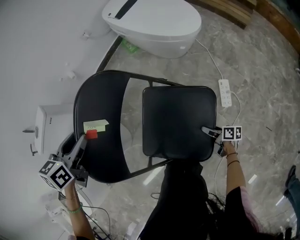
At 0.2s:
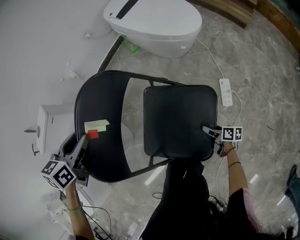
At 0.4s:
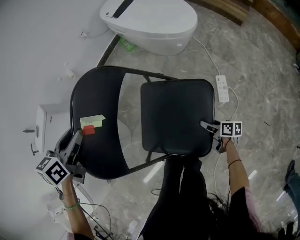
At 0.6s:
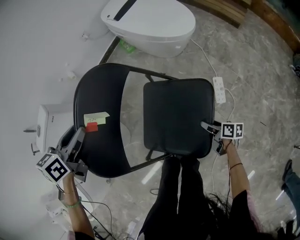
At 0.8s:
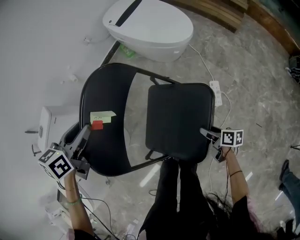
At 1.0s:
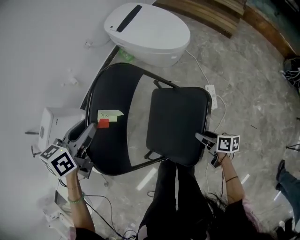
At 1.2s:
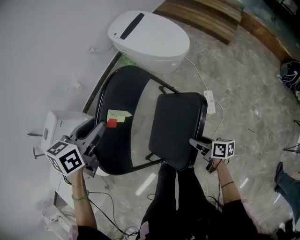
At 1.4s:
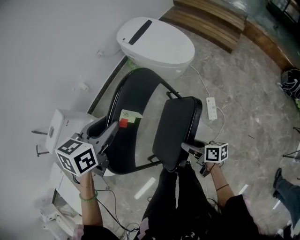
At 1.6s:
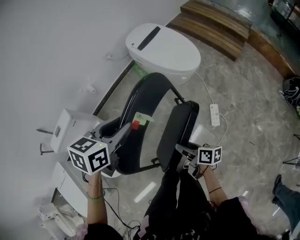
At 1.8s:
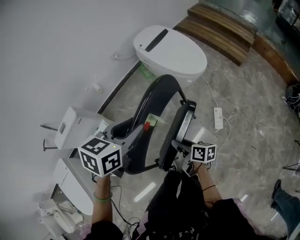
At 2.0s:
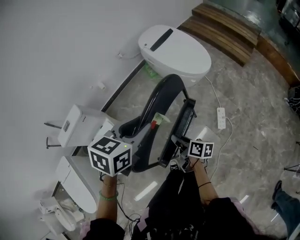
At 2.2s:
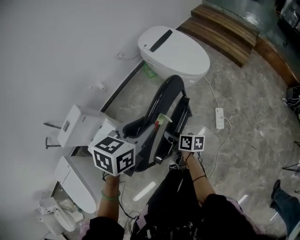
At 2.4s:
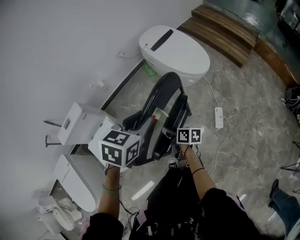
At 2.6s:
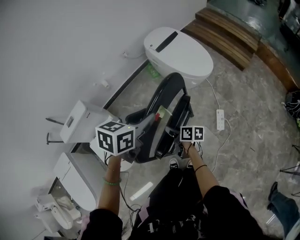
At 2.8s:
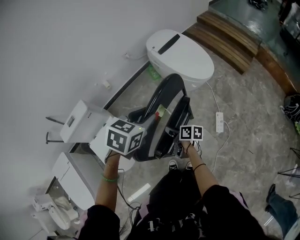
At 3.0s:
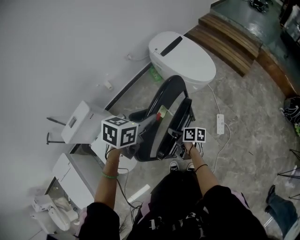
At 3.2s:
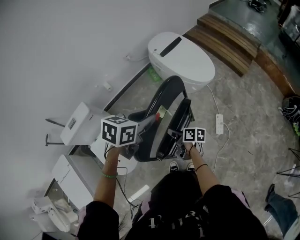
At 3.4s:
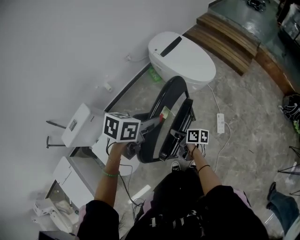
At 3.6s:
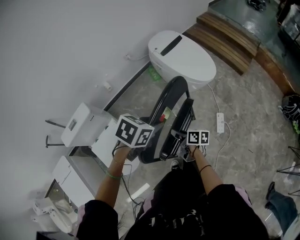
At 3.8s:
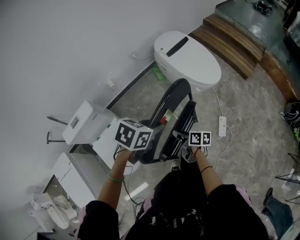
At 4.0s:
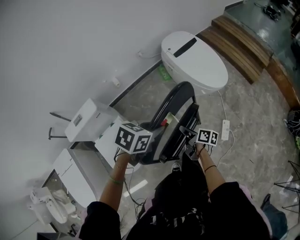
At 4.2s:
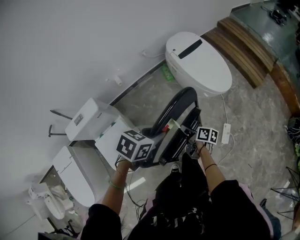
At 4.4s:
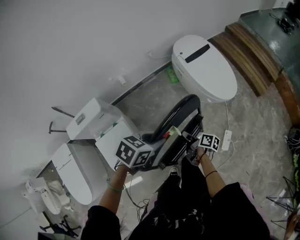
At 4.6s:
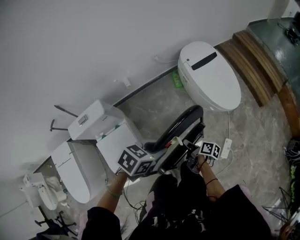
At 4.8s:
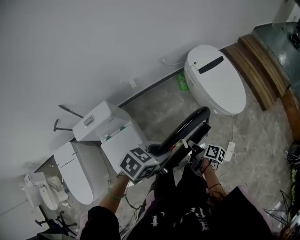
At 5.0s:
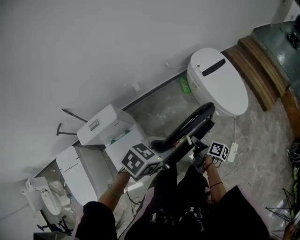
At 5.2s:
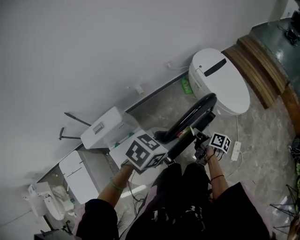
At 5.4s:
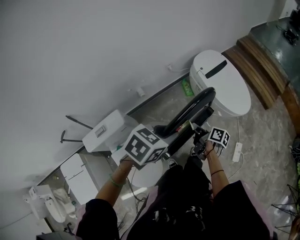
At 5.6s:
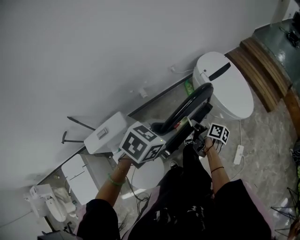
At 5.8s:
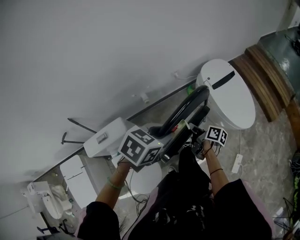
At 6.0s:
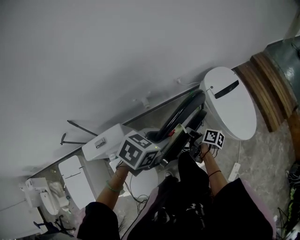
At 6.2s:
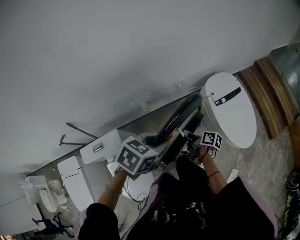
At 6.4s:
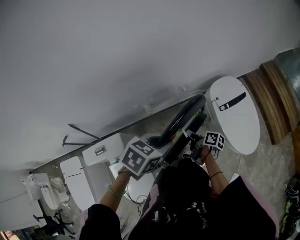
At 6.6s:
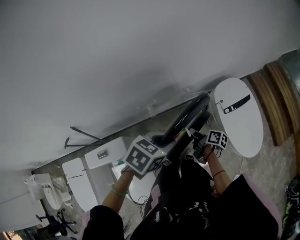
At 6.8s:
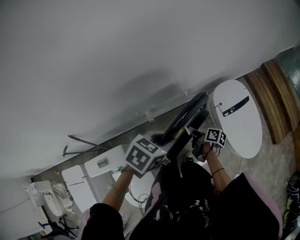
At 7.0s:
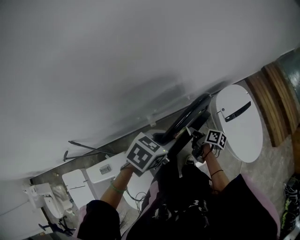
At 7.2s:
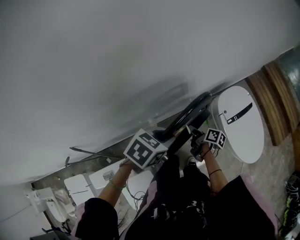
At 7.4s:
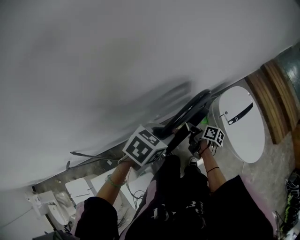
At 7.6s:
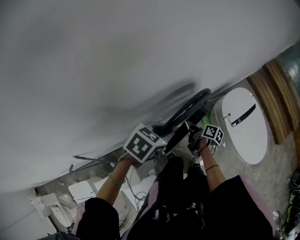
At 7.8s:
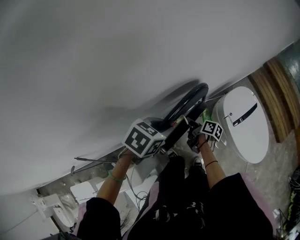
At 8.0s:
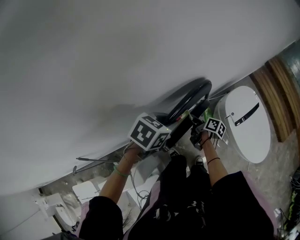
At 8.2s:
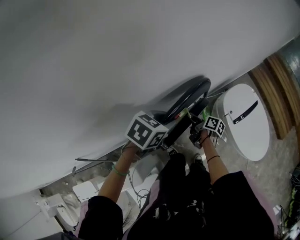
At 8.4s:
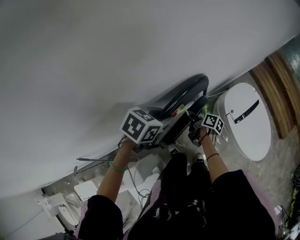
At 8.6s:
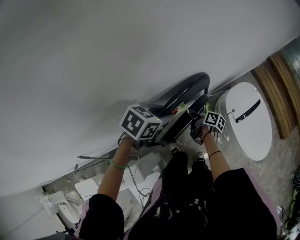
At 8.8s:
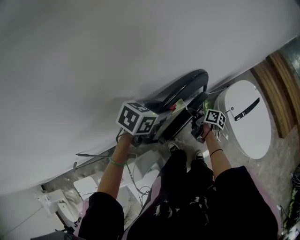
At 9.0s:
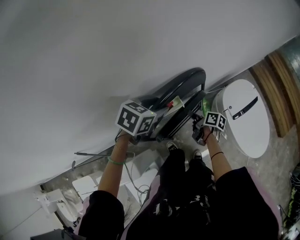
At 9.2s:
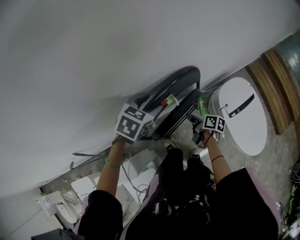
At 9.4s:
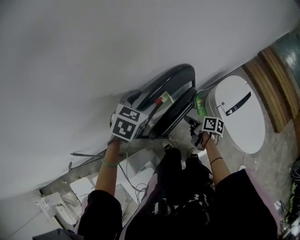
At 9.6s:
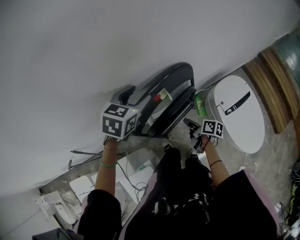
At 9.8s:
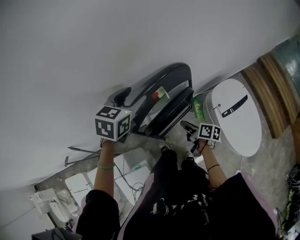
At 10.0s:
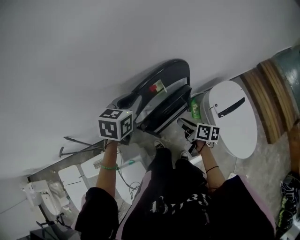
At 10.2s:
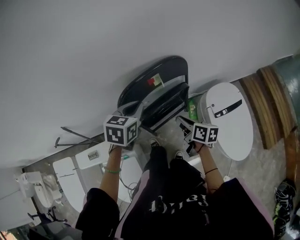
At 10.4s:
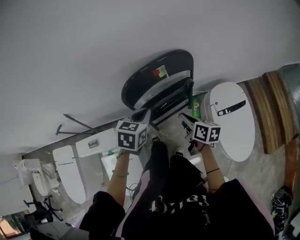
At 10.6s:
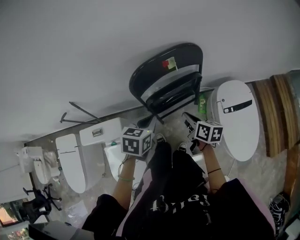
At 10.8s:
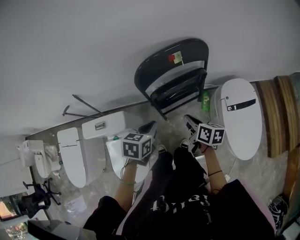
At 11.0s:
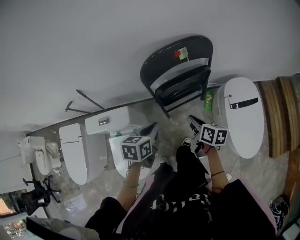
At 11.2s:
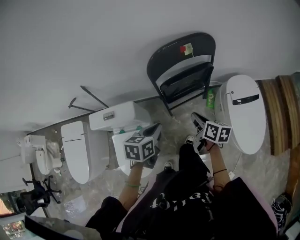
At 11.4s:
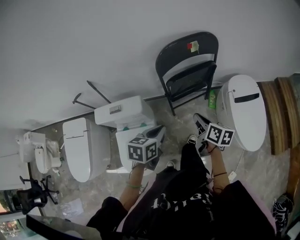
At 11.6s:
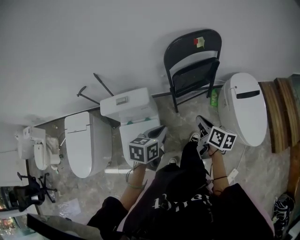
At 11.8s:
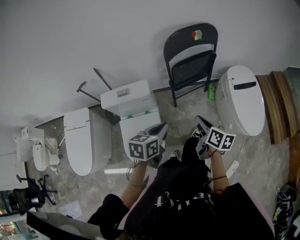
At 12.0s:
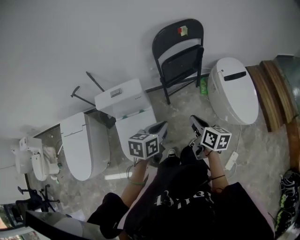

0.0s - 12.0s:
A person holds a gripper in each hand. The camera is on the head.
0.0s - 1.6s: The right gripper moves upward, approximately 35 cm, and closes up, while the left gripper goes roughly 20 cm upward and to the right.
1.6s - 3.0s: The right gripper heads to the left and forward, covering roughly 15 cm.
3.0s - 4.4s: The right gripper goes some 10 cm forward. The left gripper heads to the left, covering some 5 cm.
4.4s - 6.0s: The grippers both shift forward and to the left by roughly 30 cm.
6.0s - 7.6s: The grippers both shift forward and to the left by roughly 30 cm.
7.6s - 9.0s: The left gripper is displaced forward by approximately 10 cm, and opens its fingers.
9.0s - 10.4s: The right gripper is displaced backward and upward by about 20 cm, and swivels about 40 degrees. The left gripper moves backward, about 20 cm, rotates some 30 degrees, and closes up.
10.4s - 12.0s: The two grippers travel together, backward, some 40 cm. The left gripper turns by some 20 degrees.

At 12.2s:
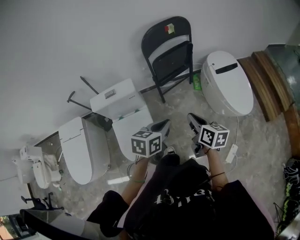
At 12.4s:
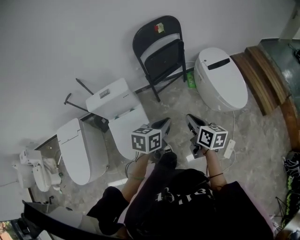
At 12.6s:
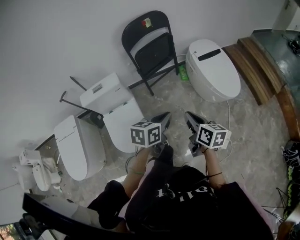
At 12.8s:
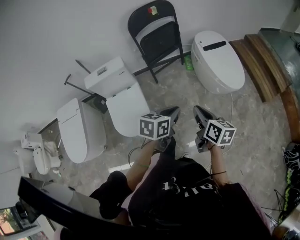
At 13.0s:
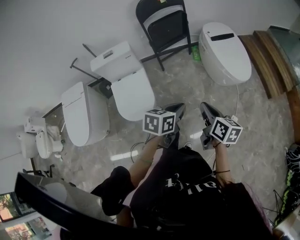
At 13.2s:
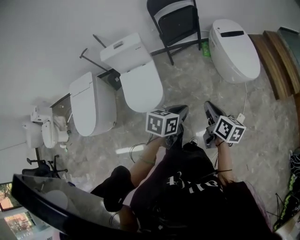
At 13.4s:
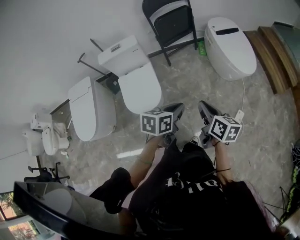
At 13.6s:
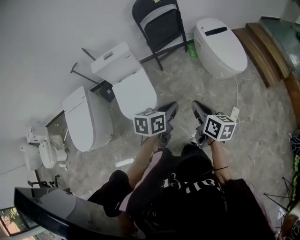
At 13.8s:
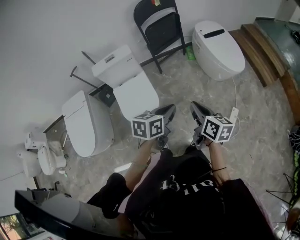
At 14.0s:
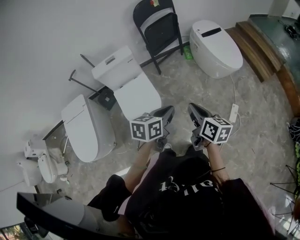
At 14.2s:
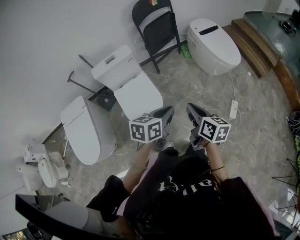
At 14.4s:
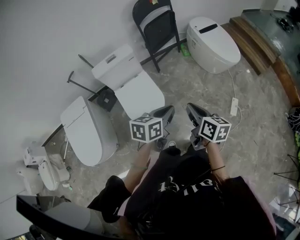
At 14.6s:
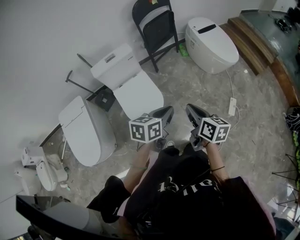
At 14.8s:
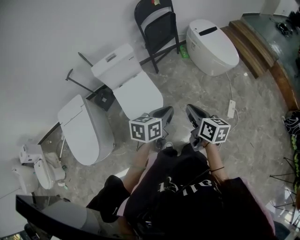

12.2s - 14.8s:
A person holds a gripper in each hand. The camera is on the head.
12.2s - 13.4s: The two grippers go approximately 30 cm backward and to the right.
13.4s - 14.8s: Both grippers move to the left and backward, some 20 cm.

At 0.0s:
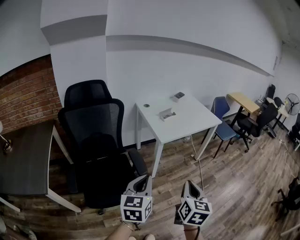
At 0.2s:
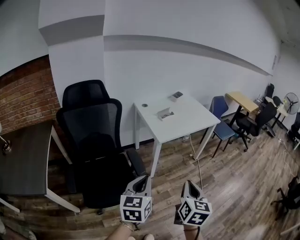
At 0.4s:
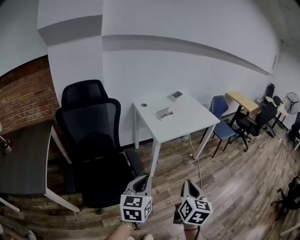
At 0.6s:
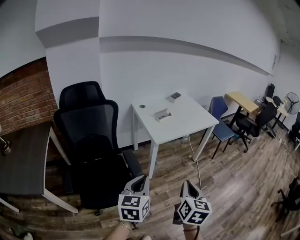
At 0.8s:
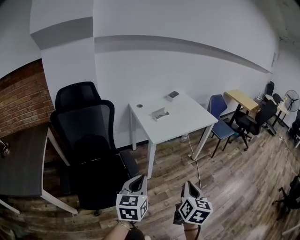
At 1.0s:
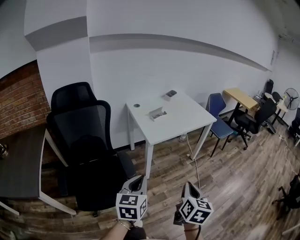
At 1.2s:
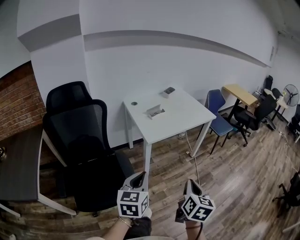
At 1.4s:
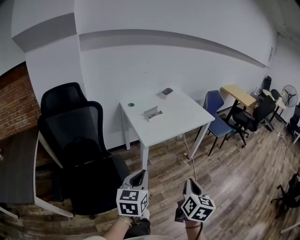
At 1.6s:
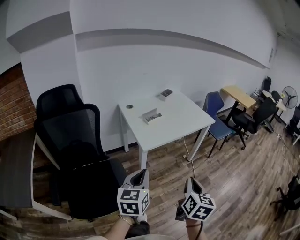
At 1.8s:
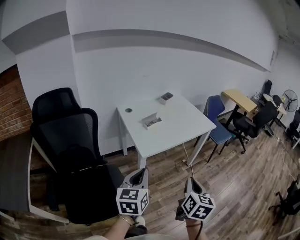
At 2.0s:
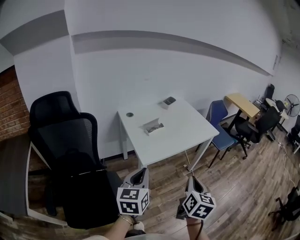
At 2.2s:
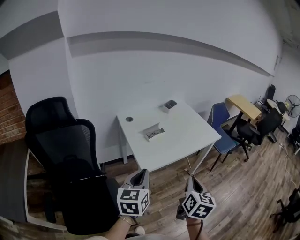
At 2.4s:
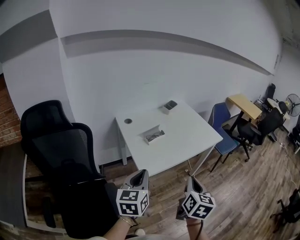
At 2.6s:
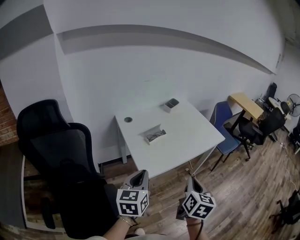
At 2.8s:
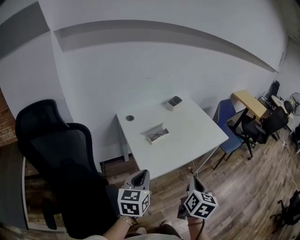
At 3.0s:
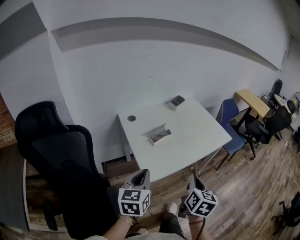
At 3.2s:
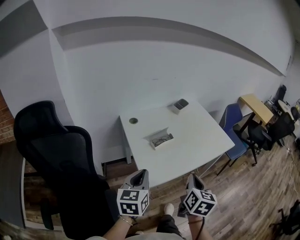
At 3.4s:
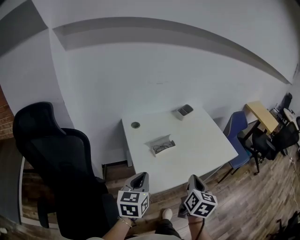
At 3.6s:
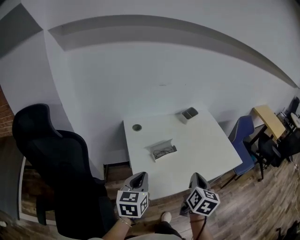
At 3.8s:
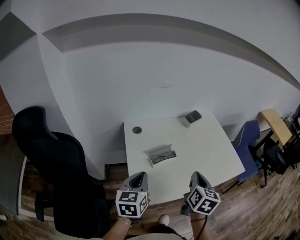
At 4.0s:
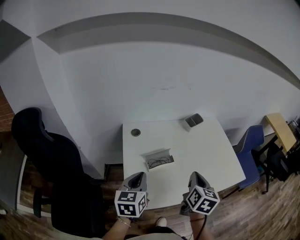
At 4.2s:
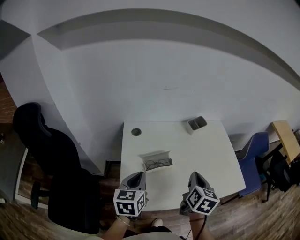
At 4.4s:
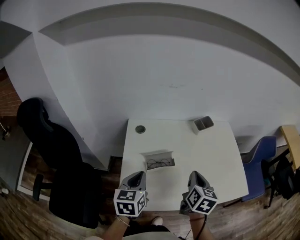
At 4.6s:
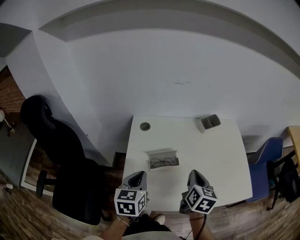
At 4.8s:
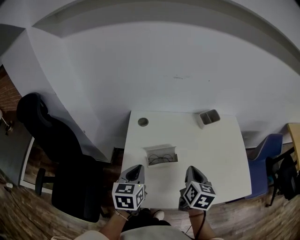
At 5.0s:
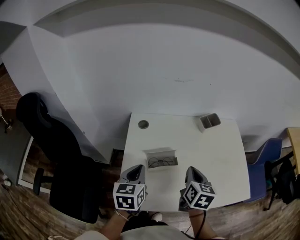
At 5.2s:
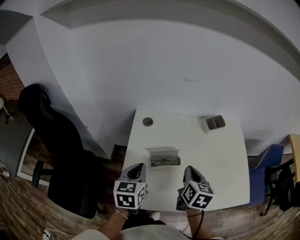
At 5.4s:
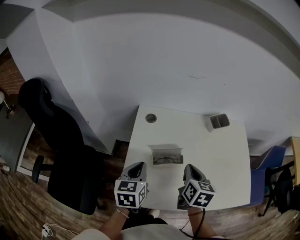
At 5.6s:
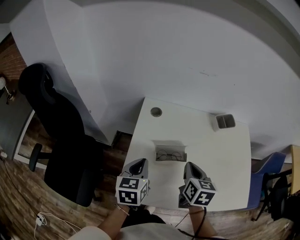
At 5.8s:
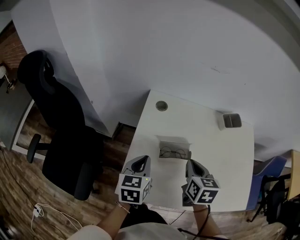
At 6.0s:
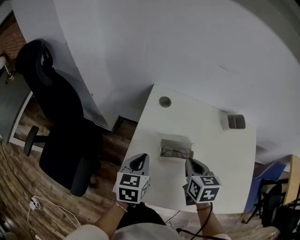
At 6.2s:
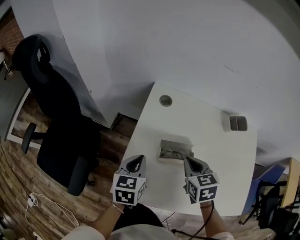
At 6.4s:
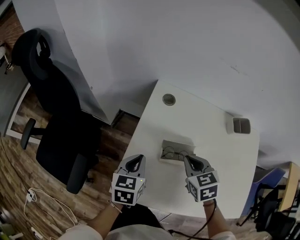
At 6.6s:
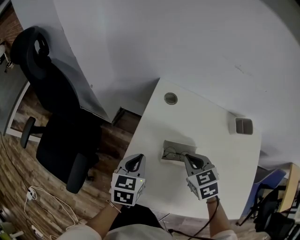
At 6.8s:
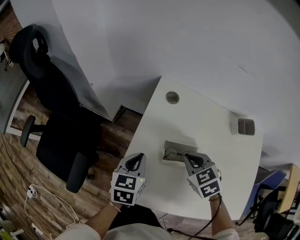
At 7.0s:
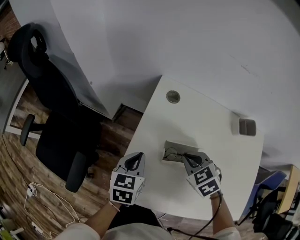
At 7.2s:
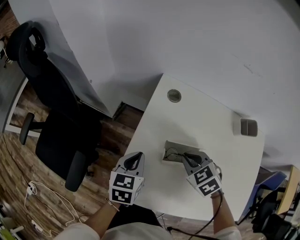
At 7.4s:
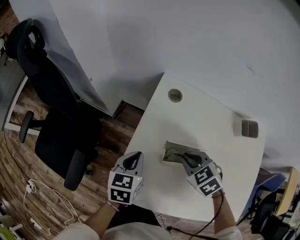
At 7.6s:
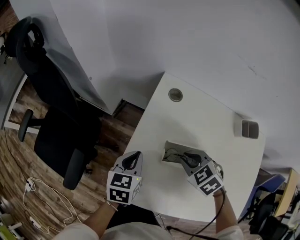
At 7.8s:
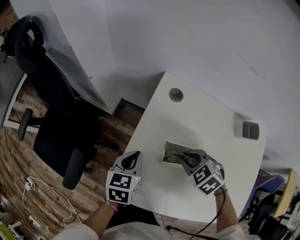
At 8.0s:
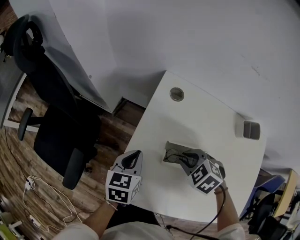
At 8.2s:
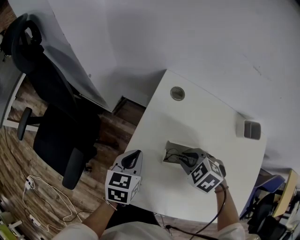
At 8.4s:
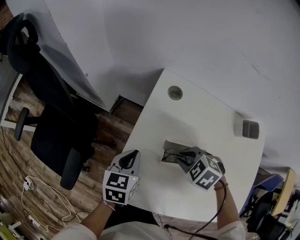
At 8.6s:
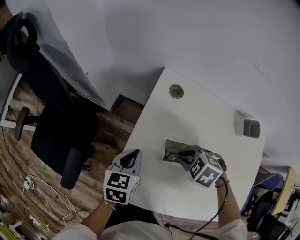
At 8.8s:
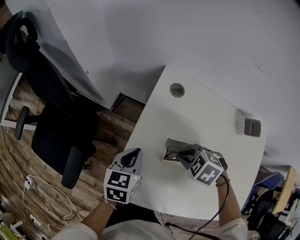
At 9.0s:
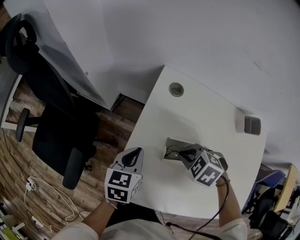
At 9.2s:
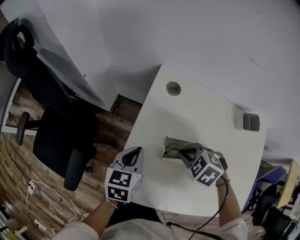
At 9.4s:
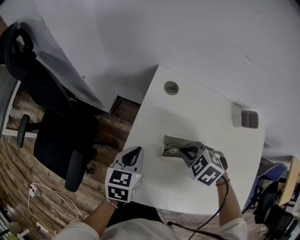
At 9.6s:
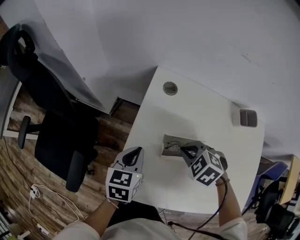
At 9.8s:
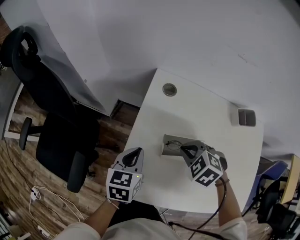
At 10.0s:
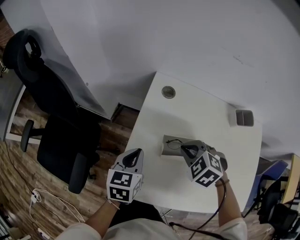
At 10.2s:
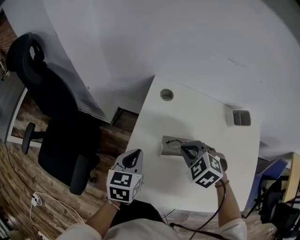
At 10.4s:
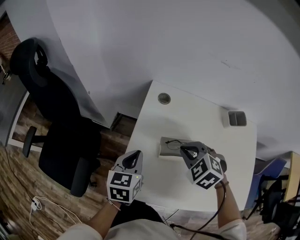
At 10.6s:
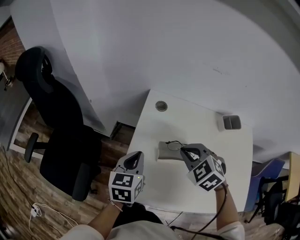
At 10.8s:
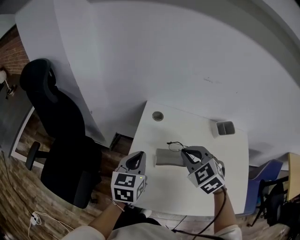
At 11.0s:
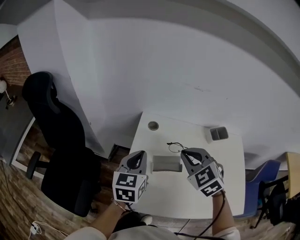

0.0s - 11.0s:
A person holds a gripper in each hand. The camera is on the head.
0.0s - 1.6s: The grippers both shift forward and to the right by roughly 15 cm.
1.6s - 3.2s: The grippers both shift forward by approximately 25 cm.
3.2s - 4.8s: The right gripper ends up about 30 cm from where it was, and swivels about 30 degrees, while the left gripper changes place by some 20 cm, and turns by some 30 degrees.
4.8s - 6.2s: The left gripper moves downward, some 10 cm; the right gripper goes roughly 10 cm to the left, downward and forward, and rotates some 50 degrees.
6.2s - 7.8s: The right gripper moves downward, some 5 cm, and turns by some 50 degrees.
7.8s - 9.4s: There are only small adjustments of the grippers.
9.4s - 11.0s: The two grippers go roughly 20 cm upward. The right gripper tilts its fingers approximately 30 degrees upward; the left gripper rotates some 20 degrees.
